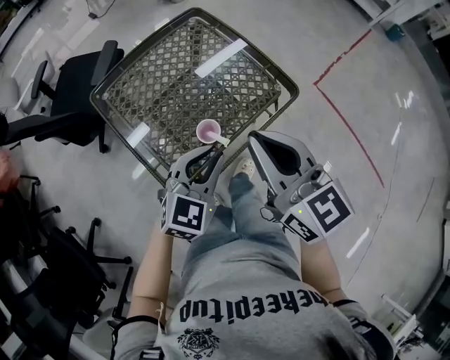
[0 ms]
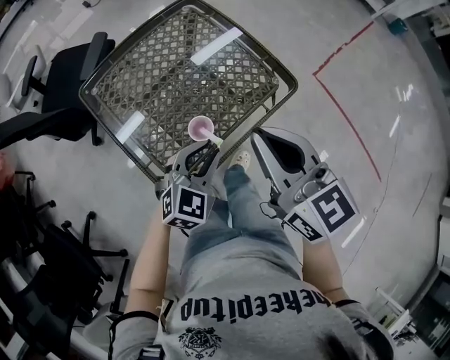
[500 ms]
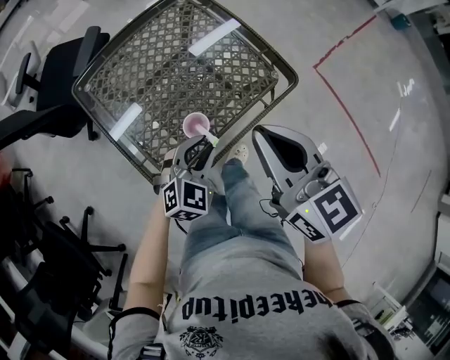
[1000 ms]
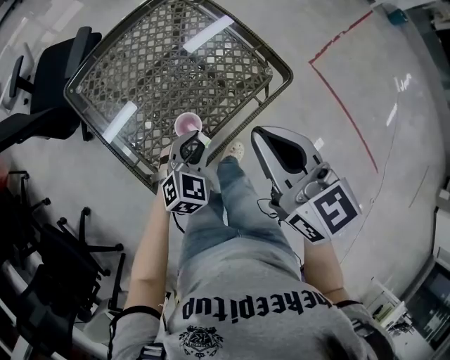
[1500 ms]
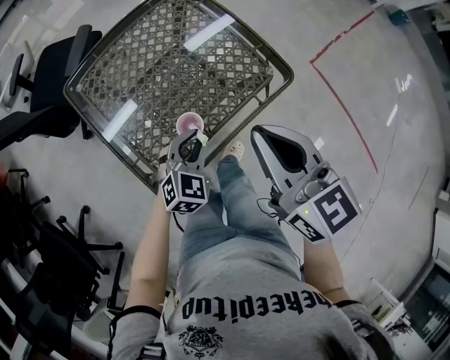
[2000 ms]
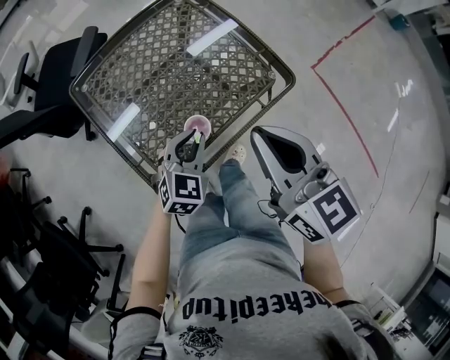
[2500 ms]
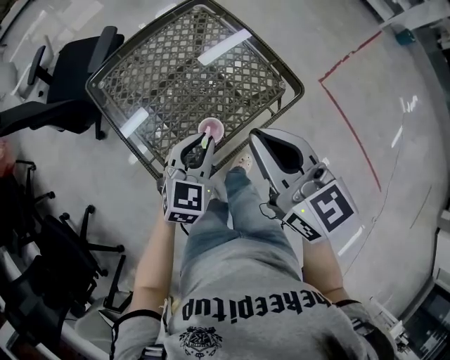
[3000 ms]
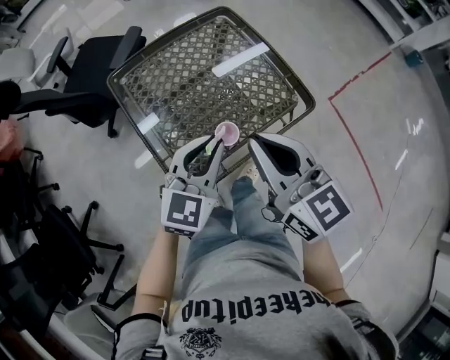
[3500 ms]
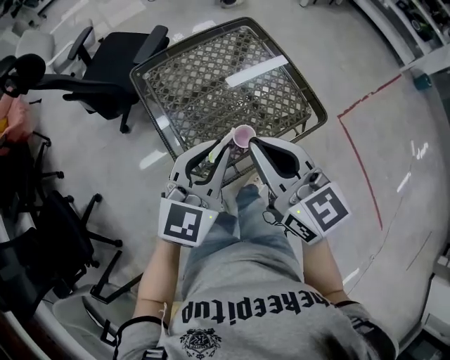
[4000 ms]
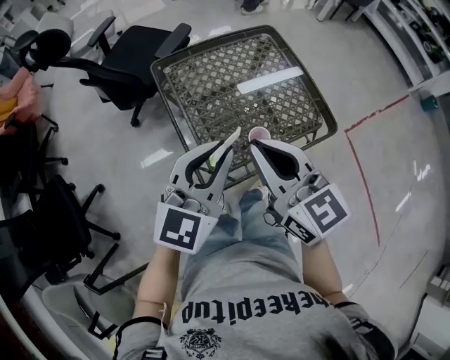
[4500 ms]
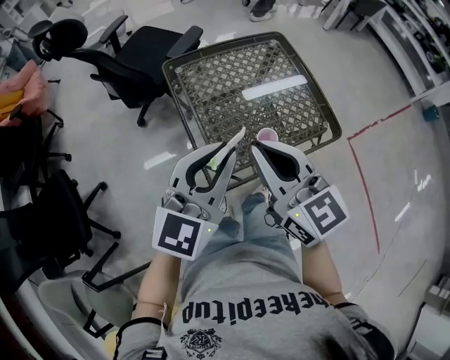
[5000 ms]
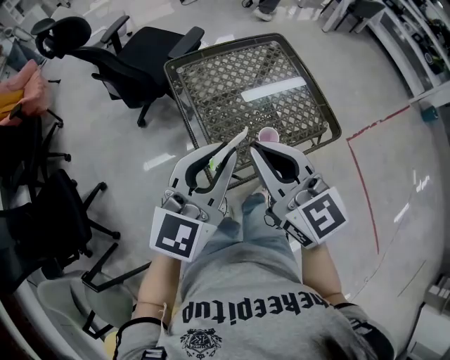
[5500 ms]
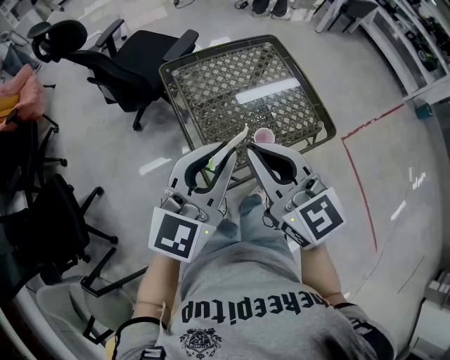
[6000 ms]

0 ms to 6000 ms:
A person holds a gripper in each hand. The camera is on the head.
0 ms to 2000 ms: The left gripper is displaced downward by some 15 cm. The right gripper moves roughly 5 cm.
2000 ms to 4000 ms: The left gripper goes some 20 cm upward and to the left, and swivels about 30 degrees. Meanwhile the right gripper travels to the left by approximately 10 cm.
4000 ms to 6000 ms: The left gripper travels to the left and upward by about 10 cm, while the right gripper heads to the left, covering about 10 cm.

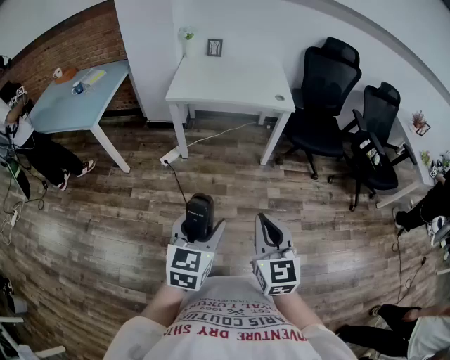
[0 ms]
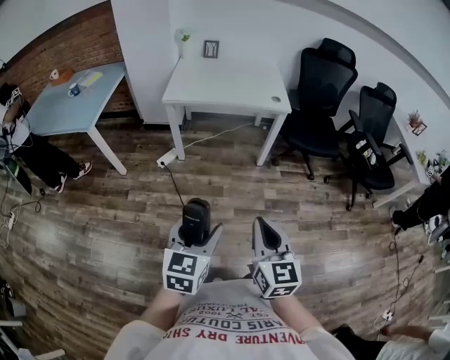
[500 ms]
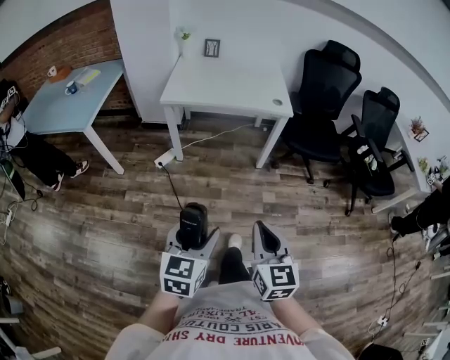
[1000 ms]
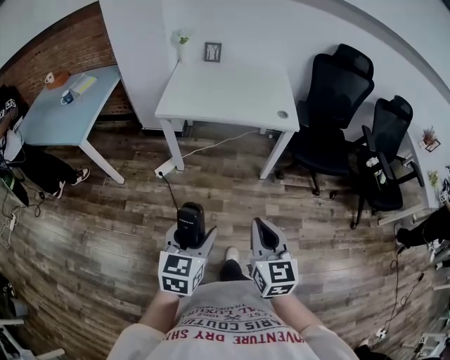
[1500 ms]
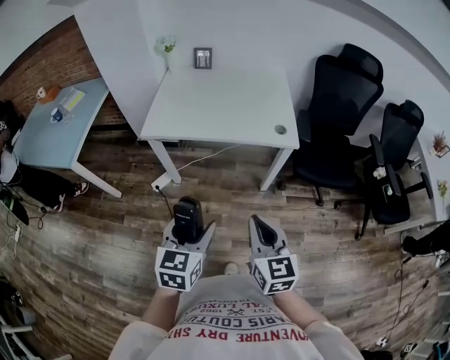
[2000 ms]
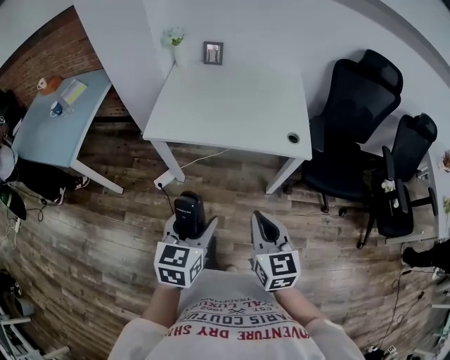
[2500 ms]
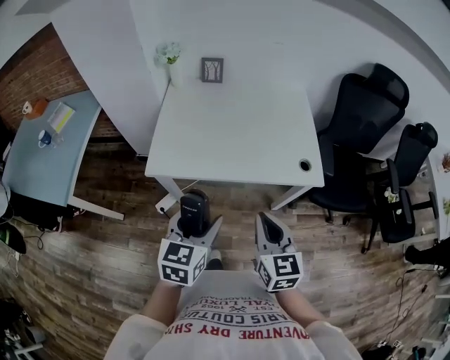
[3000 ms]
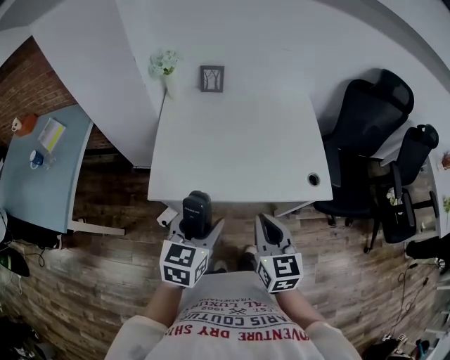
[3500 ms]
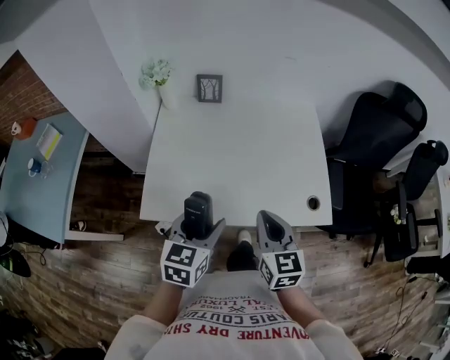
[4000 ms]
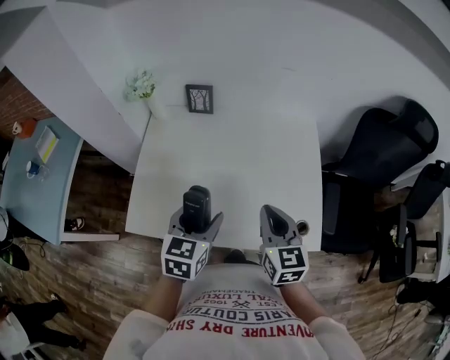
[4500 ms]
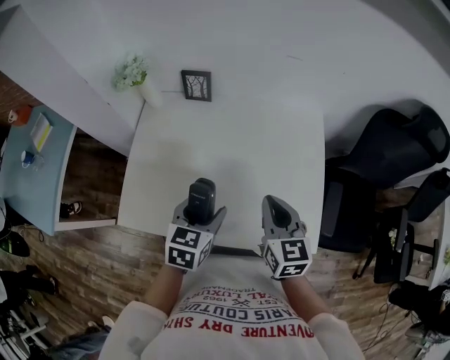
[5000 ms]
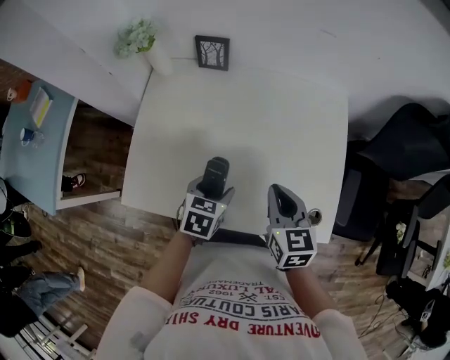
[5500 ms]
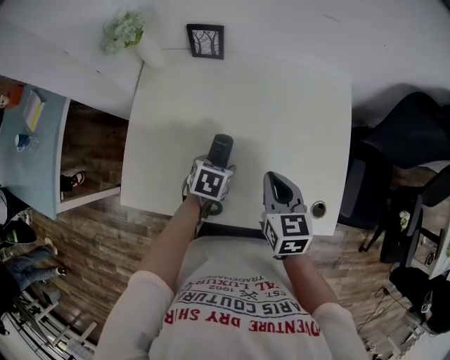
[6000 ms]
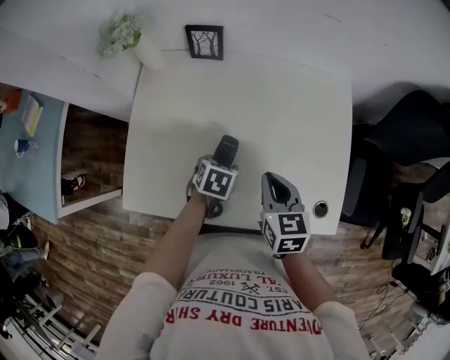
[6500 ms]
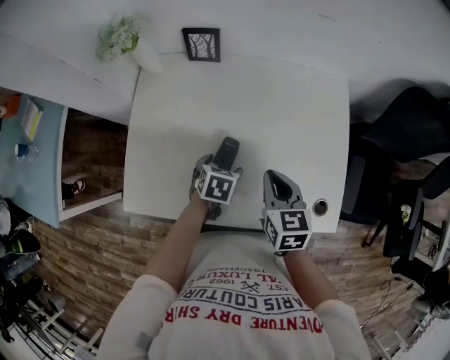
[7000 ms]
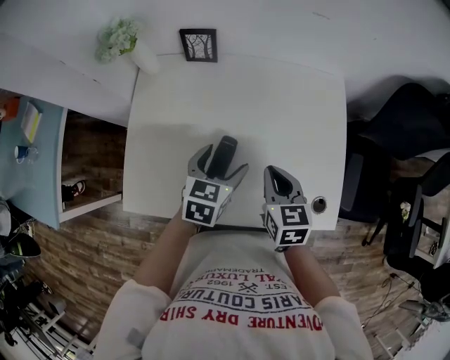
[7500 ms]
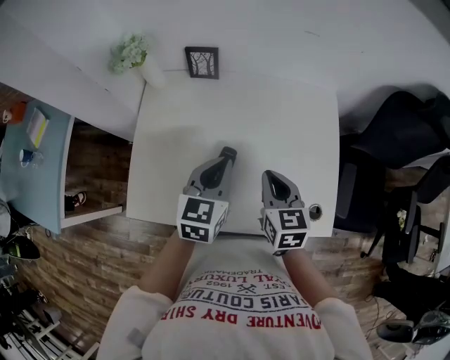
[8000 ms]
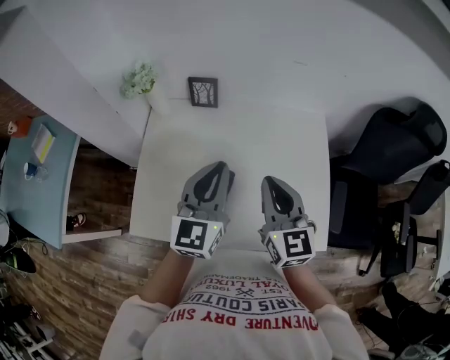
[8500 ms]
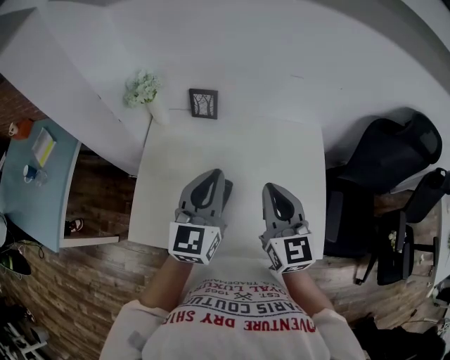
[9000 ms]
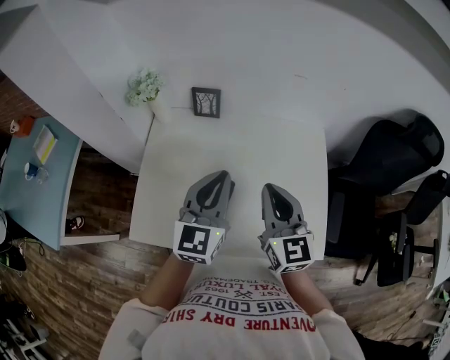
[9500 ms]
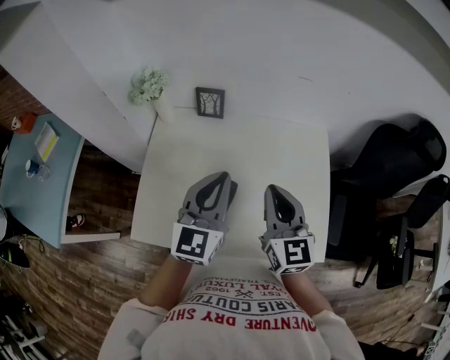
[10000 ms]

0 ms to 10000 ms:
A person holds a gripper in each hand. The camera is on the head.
0 ms to 2000 ms: Both grippers move forward, approximately 35 cm.
2000 ms to 4000 ms: The two grippers travel together, forward, some 40 cm.
4000 ms to 6000 ms: The right gripper heads forward and downward, covering roughly 20 cm; the left gripper travels downward and forward by about 30 cm, and tilts its fingers roughly 30 degrees downward.
6000 ms to 8000 ms: The left gripper goes roughly 20 cm upward, tilts its fingers some 40 degrees upward, and closes up.
8000 ms to 10000 ms: Both grippers move upward, roughly 15 cm. The right gripper rotates approximately 20 degrees, while the left gripper swivels approximately 30 degrees.

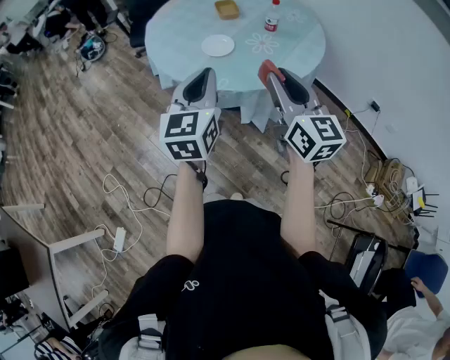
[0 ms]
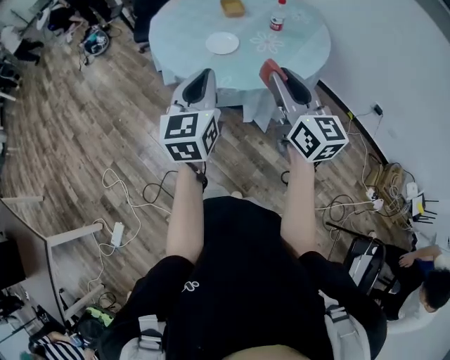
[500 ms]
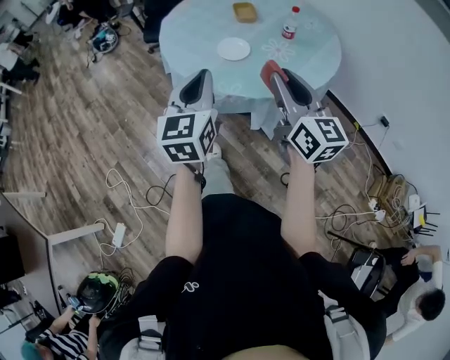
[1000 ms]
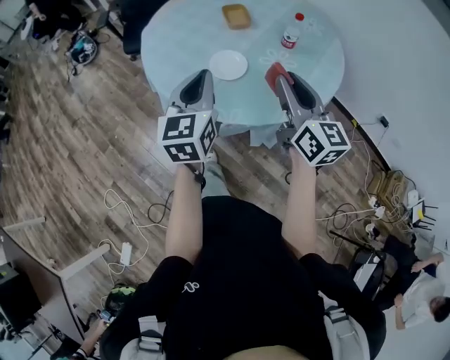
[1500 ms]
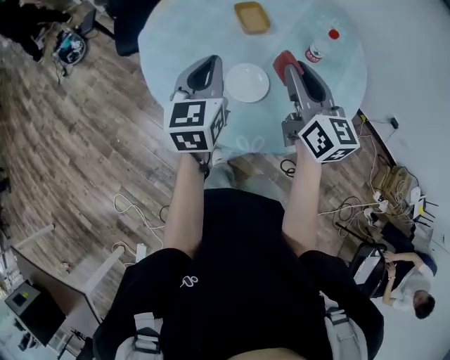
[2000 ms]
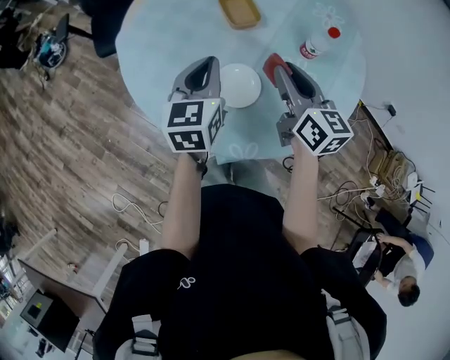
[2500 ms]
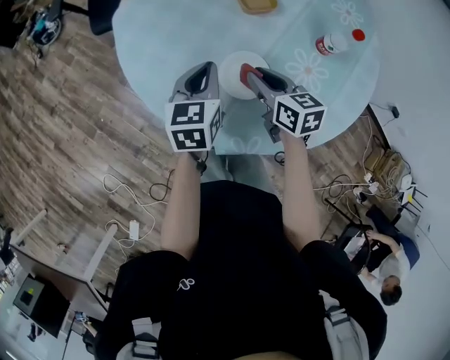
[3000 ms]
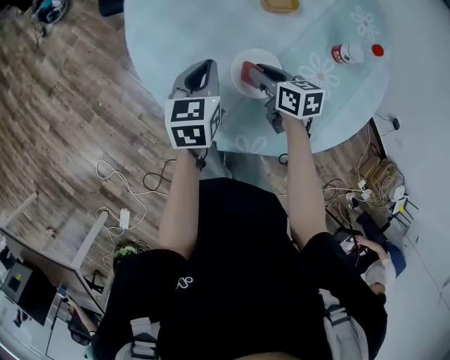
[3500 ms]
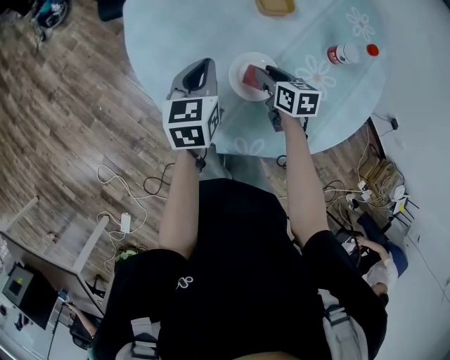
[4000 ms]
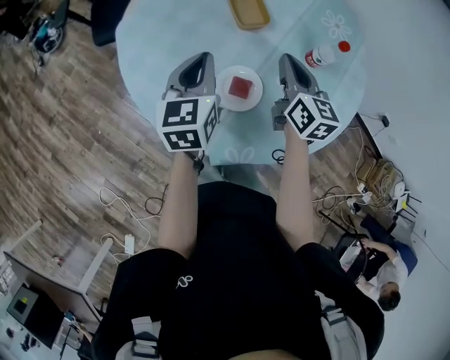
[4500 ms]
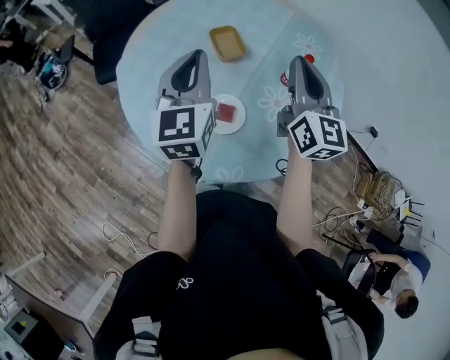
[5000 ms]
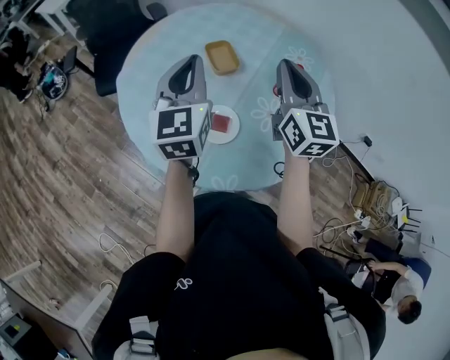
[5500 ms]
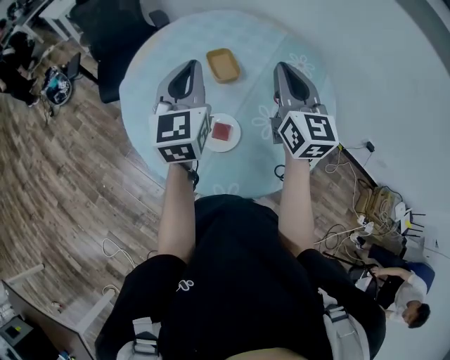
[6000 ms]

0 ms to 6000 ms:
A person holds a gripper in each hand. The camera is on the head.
0 ms to 2000 ms: The grippers both shift forward by about 40 cm.
2000 ms to 4000 ms: The right gripper travels downward by roughly 30 cm, and points its fingers approximately 40 degrees further downward. Meanwhile the left gripper shifts roughly 15 cm downward and forward.
4000 ms to 6000 ms: The right gripper shifts roughly 40 cm upward, tilts its fingers approximately 50 degrees upward, and closes; the left gripper heads upward, covering some 25 cm, and rotates some 30 degrees.

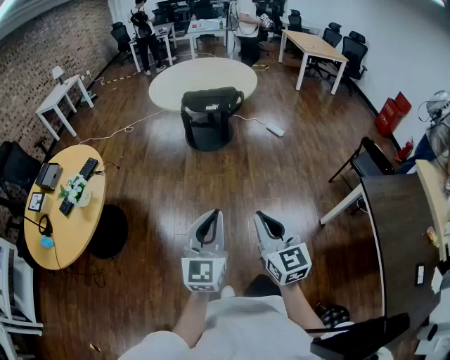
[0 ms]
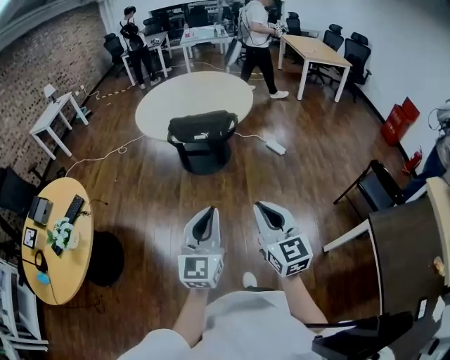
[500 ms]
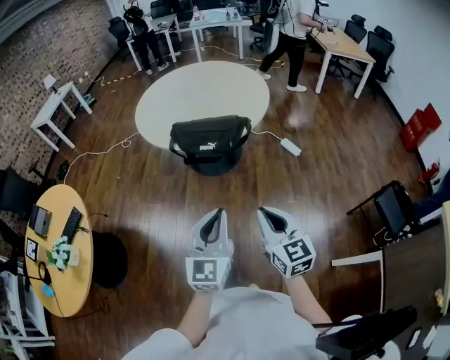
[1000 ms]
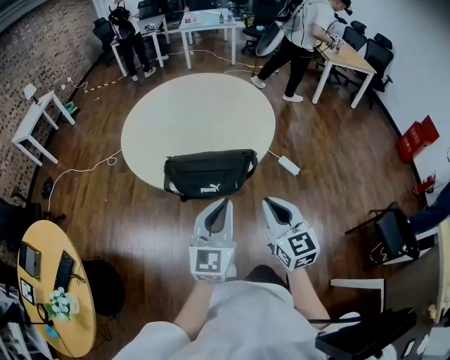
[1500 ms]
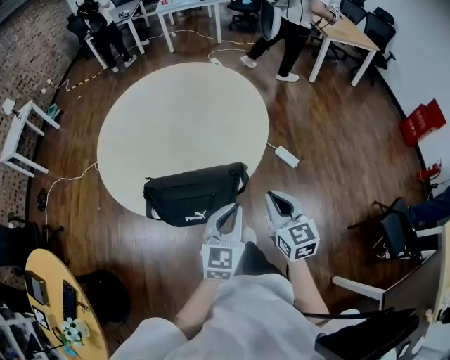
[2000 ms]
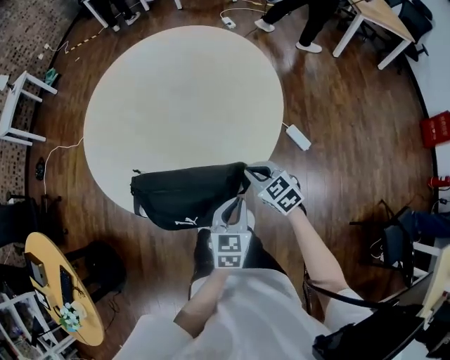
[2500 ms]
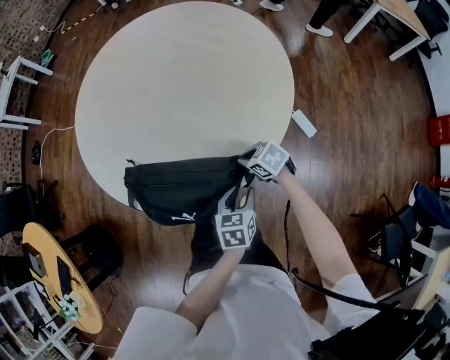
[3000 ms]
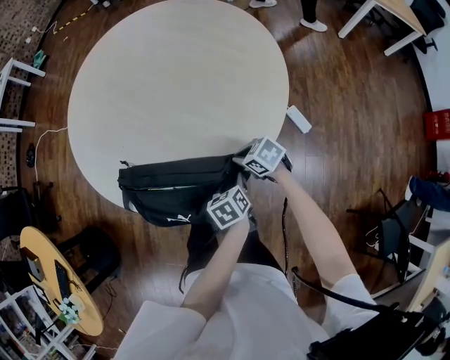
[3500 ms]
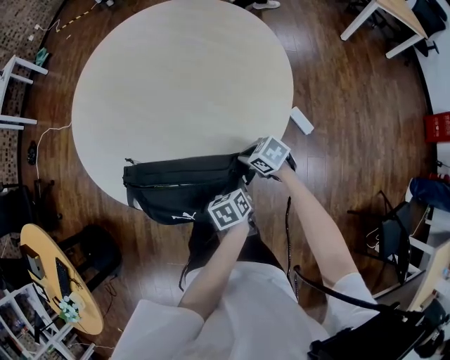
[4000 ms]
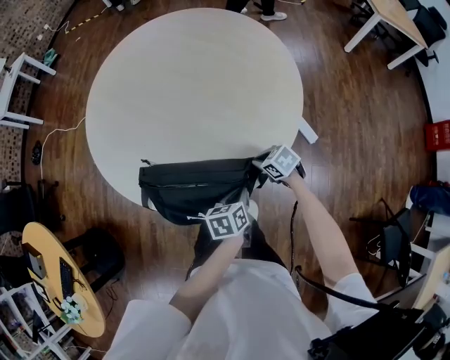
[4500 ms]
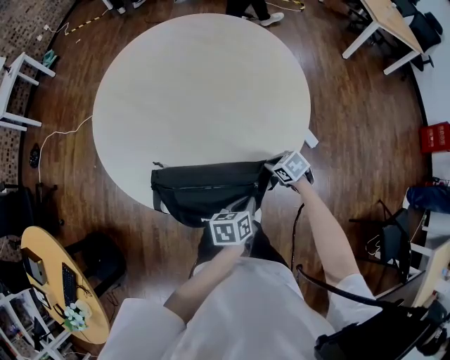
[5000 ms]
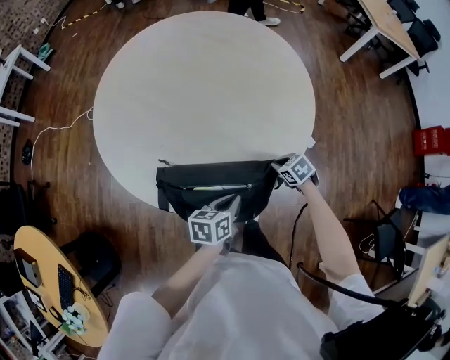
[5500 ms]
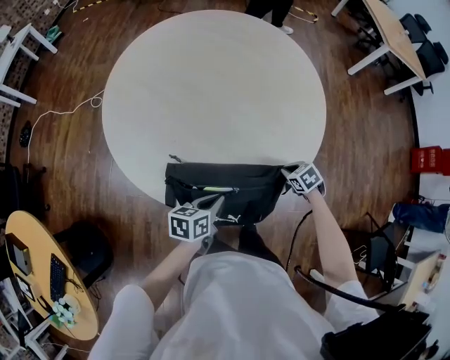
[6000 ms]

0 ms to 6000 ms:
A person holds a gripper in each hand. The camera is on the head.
0 ms to 2000 ms: The two grippers travel together, forward, roughly 90 cm. The left gripper rotates roughly 20 degrees.
2000 ms to 4000 ms: The grippers both shift downward by approximately 30 cm. The left gripper twists approximately 50 degrees counterclockwise, seen from behind, and opens, then closes once more; the right gripper points its fingers about 30 degrees further downward.
4000 ms to 6000 ms: The left gripper ends up roughly 25 cm from where it was, and rotates approximately 30 degrees. The right gripper changes its angle by about 20 degrees.
